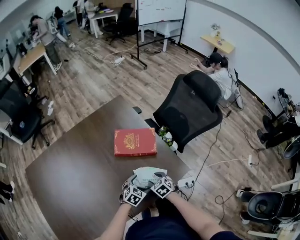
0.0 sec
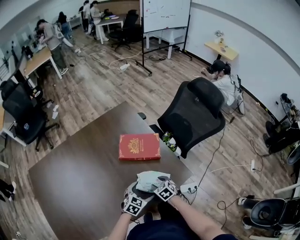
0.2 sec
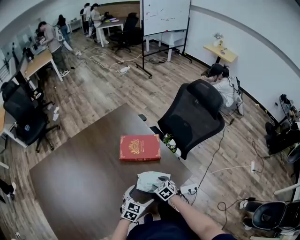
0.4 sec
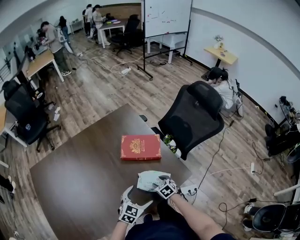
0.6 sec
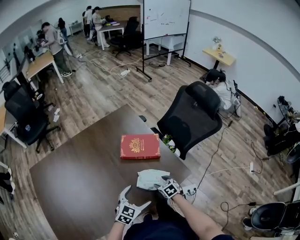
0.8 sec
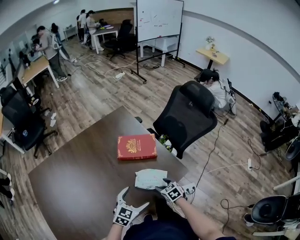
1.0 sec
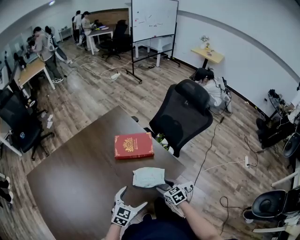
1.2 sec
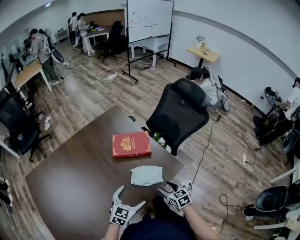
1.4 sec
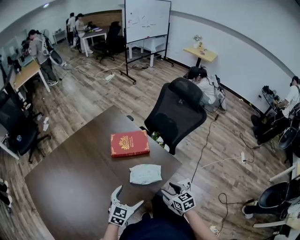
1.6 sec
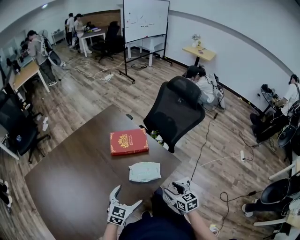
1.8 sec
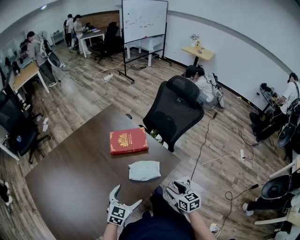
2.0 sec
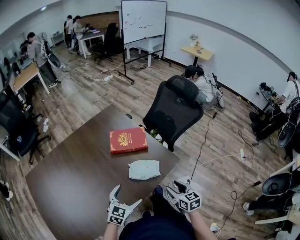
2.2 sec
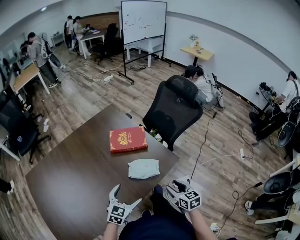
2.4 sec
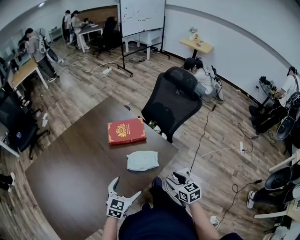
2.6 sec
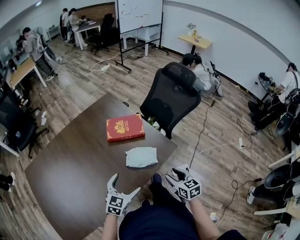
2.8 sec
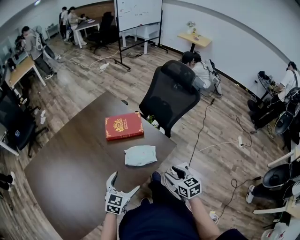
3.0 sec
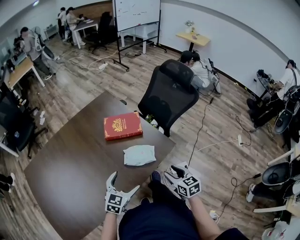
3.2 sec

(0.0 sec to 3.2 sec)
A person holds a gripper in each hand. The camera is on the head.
0.0 sec - 1.6 sec: The left gripper moves upward and backward, approximately 20 cm, and turns by roughly 20 degrees. Meanwhile the right gripper heads backward, upward and to the right, covering roughly 20 cm, and turns by about 30 degrees.
1.6 sec - 3.2 sec: The right gripper shifts by some 5 cm.

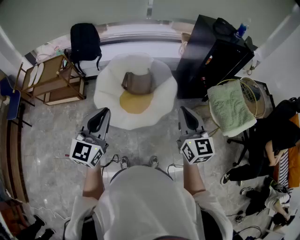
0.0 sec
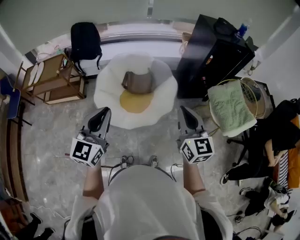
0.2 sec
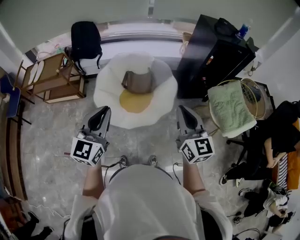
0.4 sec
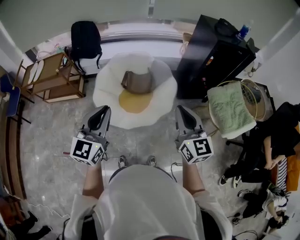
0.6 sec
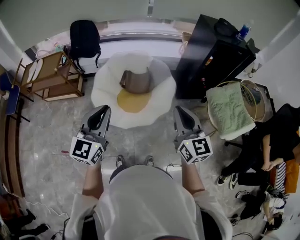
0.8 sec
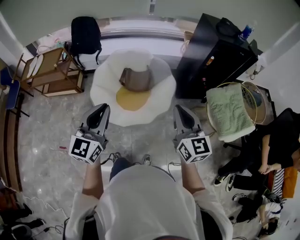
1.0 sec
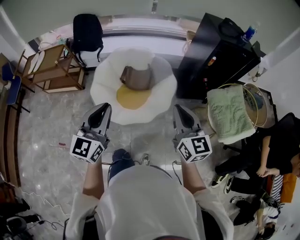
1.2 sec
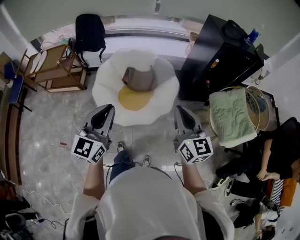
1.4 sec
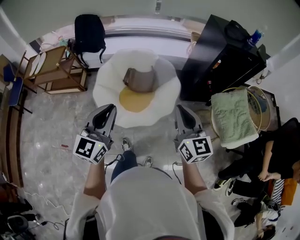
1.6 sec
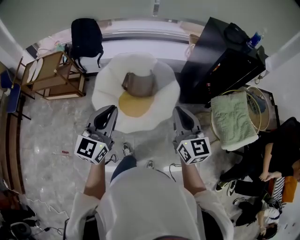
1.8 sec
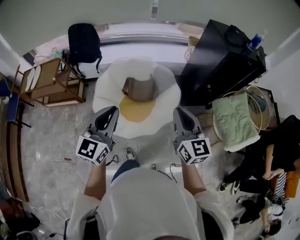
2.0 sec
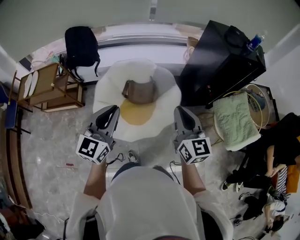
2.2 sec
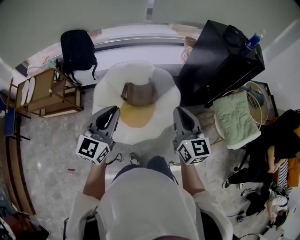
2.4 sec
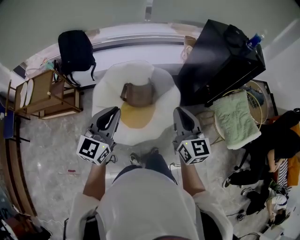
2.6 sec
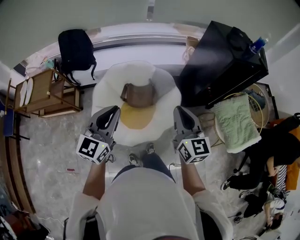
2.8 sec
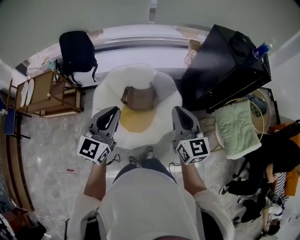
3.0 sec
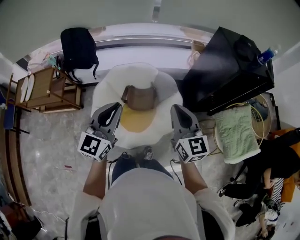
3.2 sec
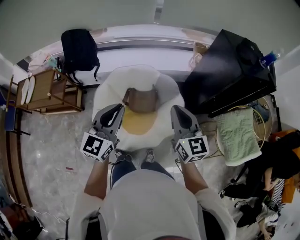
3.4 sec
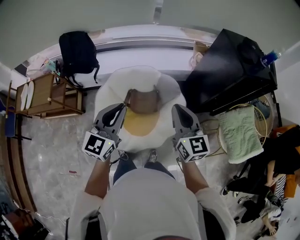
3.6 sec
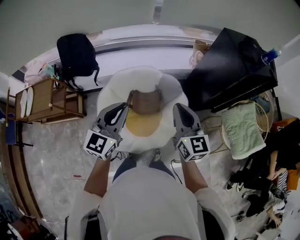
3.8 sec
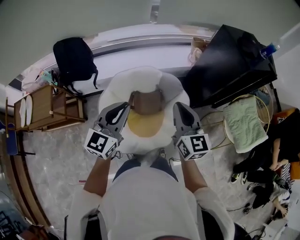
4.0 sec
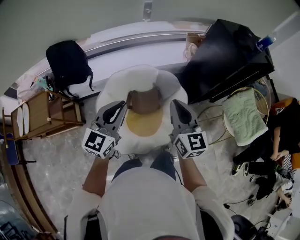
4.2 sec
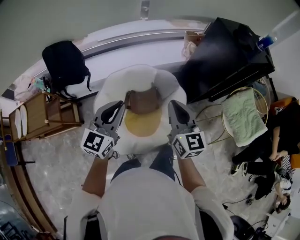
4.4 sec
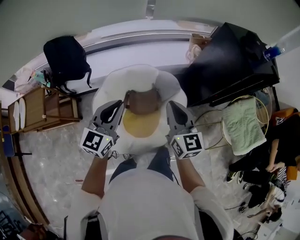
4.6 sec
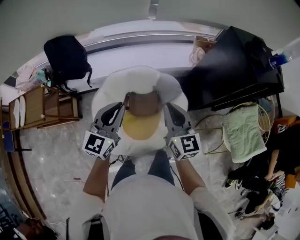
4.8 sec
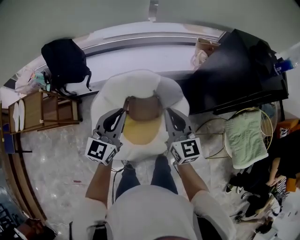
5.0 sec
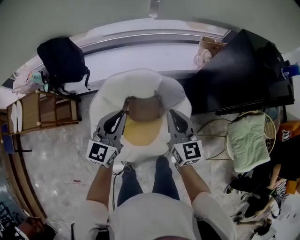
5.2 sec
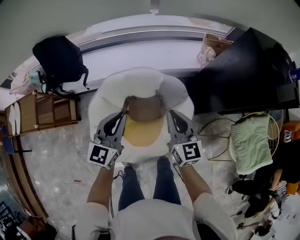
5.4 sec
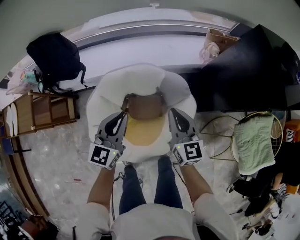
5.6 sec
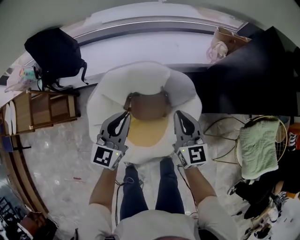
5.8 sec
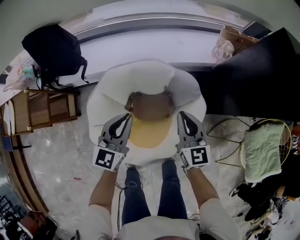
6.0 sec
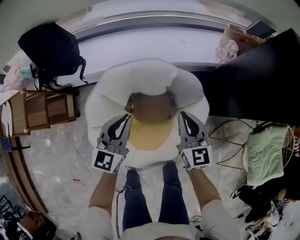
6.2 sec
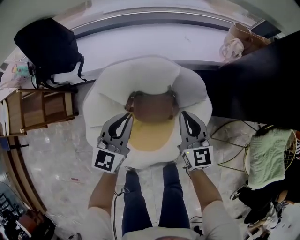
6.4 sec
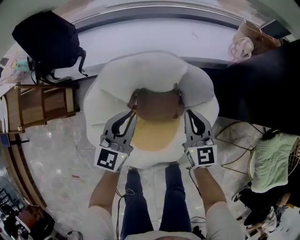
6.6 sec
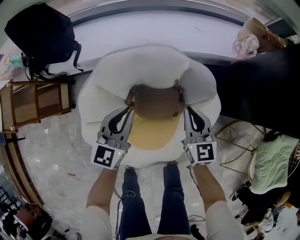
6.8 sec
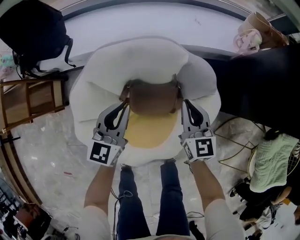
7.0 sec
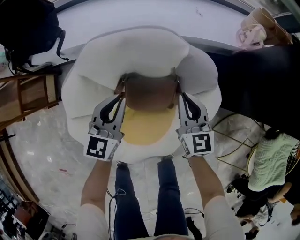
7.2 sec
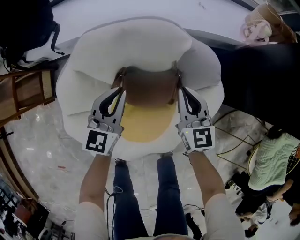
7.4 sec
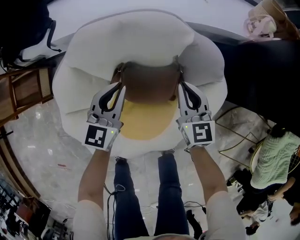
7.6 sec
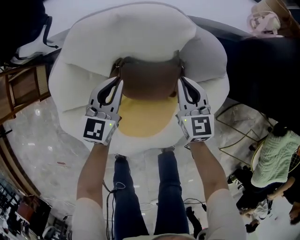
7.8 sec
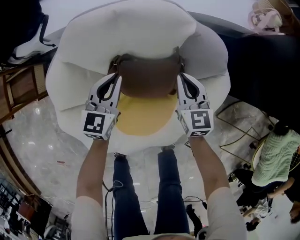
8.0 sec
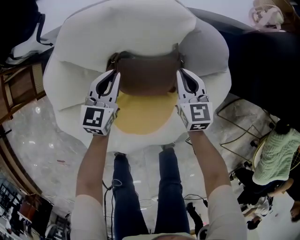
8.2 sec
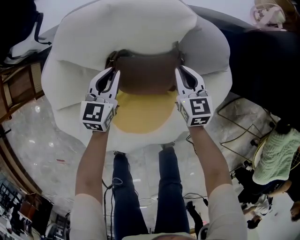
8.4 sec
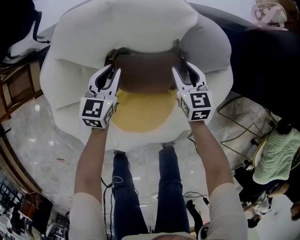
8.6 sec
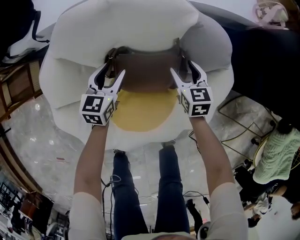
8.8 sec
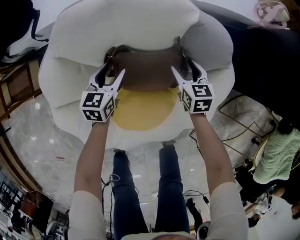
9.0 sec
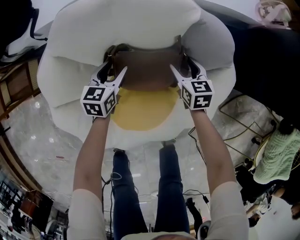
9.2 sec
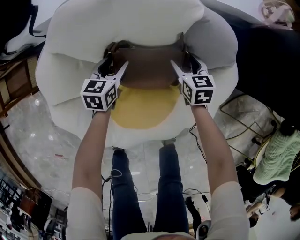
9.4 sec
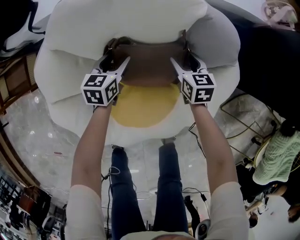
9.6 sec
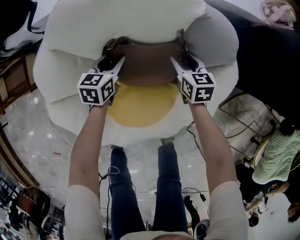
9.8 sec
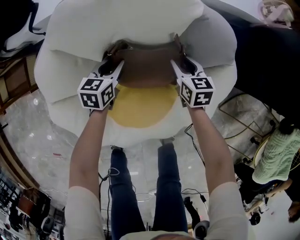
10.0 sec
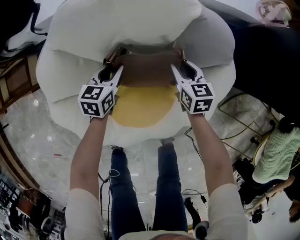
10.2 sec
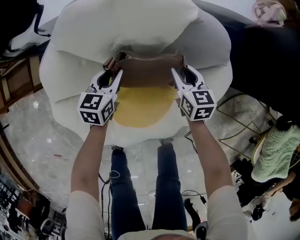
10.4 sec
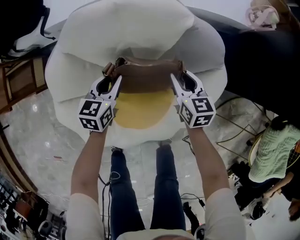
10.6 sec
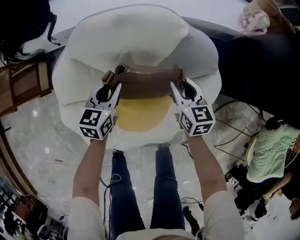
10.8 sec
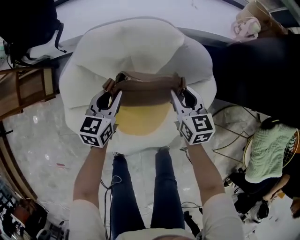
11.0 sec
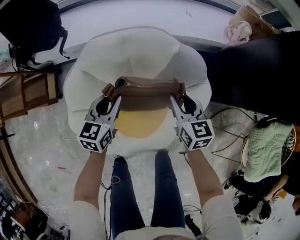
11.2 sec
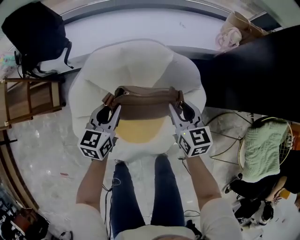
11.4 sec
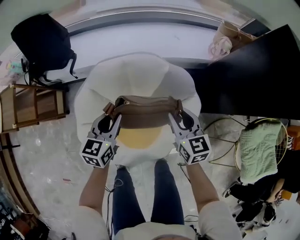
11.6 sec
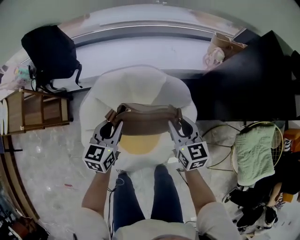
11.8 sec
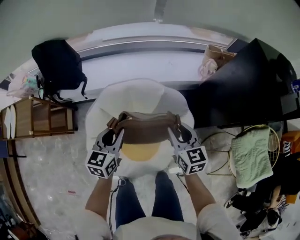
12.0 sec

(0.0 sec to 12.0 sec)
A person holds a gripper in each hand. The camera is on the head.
0.0 sec - 1.6 sec: The left gripper shifts approximately 10 cm to the right and forward, while the right gripper heads forward, covering roughly 5 cm.
1.6 sec - 3.0 sec: The left gripper is displaced forward by some 20 cm, while the right gripper goes roughly 20 cm forward and to the left.
3.0 sec - 4.4 sec: The right gripper heads to the left and forward, covering some 15 cm, while the left gripper shifts some 15 cm forward and to the left.
4.4 sec - 6.0 sec: The two grippers go roughly 30 cm downward and forward.
6.0 sec - 7.6 sec: Both grippers travel together downward, about 25 cm.
7.6 sec - 9.0 sec: Both grippers travel together downward, roughly 15 cm. The left gripper changes its angle by approximately 20 degrees, and opens. The right gripper rotates approximately 20 degrees, and opens its fingers.
9.0 sec - 10.4 sec: The right gripper shifts by roughly 5 cm, and closes its fingers. Meanwhile the left gripper closes.
10.4 sec - 12.0 sec: The two grippers go approximately 40 cm upward.

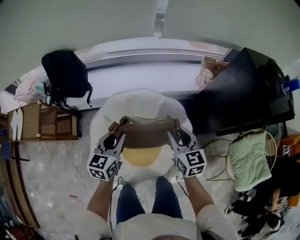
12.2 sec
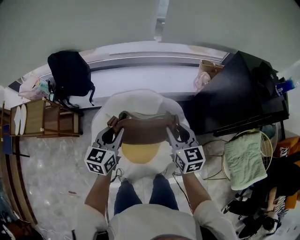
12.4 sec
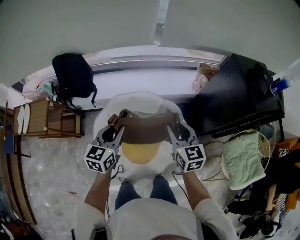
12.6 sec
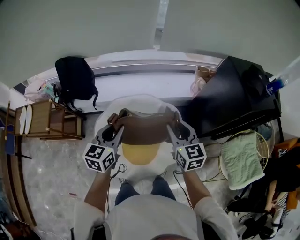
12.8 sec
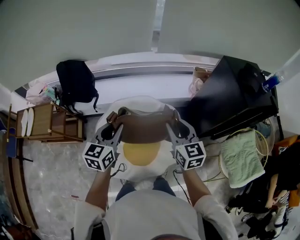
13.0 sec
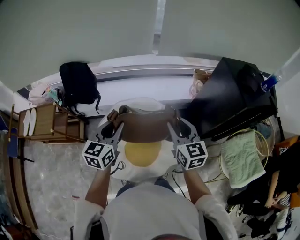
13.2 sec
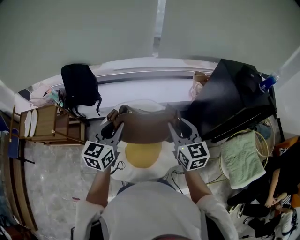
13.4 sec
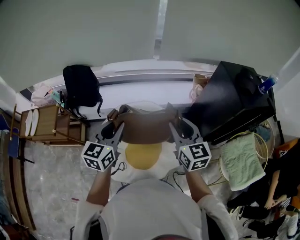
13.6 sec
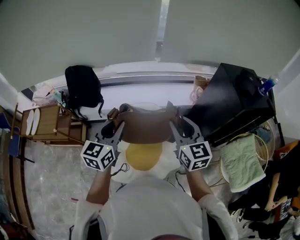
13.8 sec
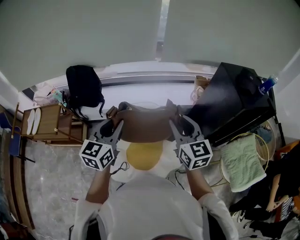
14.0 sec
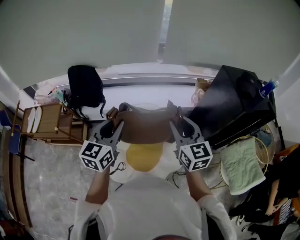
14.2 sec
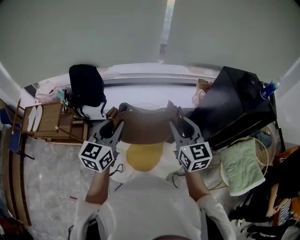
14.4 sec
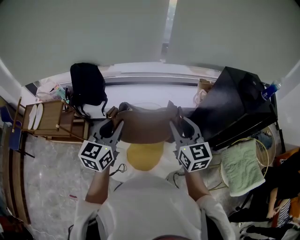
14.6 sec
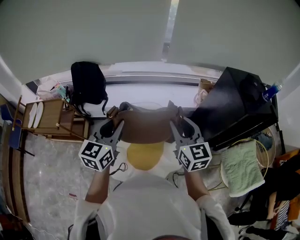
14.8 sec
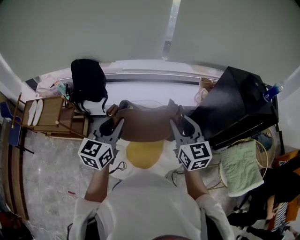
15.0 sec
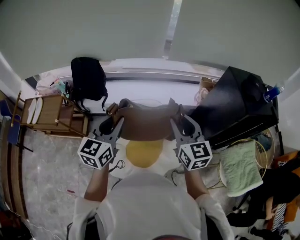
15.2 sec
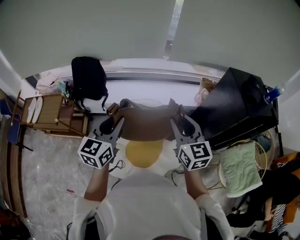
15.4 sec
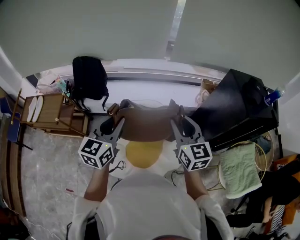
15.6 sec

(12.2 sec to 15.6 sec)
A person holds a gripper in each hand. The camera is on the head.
12.2 sec - 13.8 sec: Both grippers travel together upward, approximately 20 cm.
13.8 sec - 15.6 sec: There are only small adjustments of the grippers.

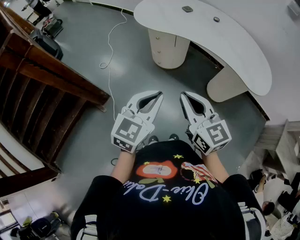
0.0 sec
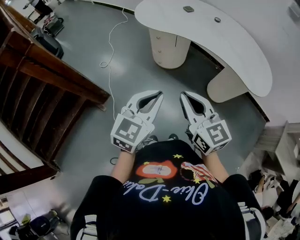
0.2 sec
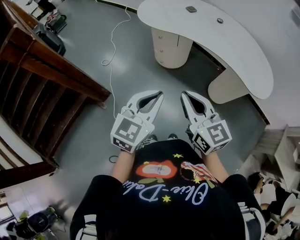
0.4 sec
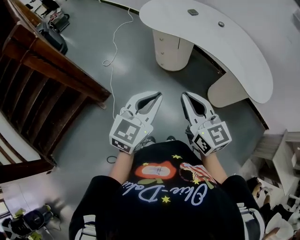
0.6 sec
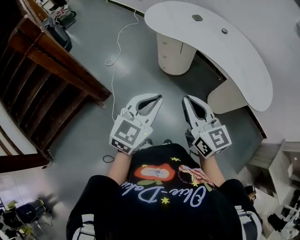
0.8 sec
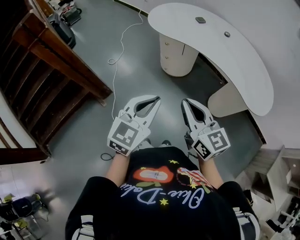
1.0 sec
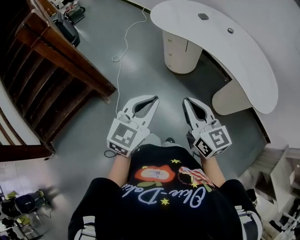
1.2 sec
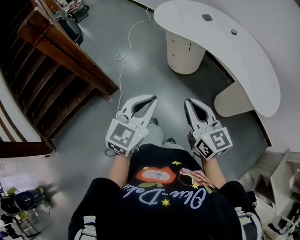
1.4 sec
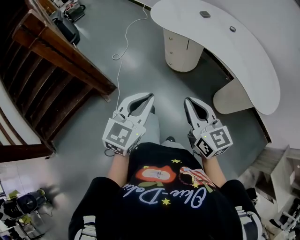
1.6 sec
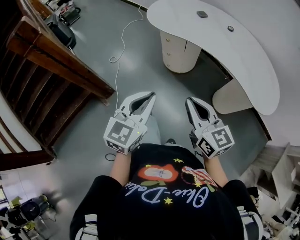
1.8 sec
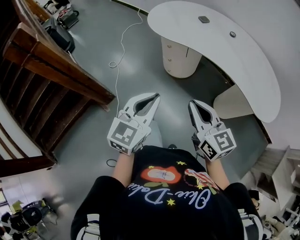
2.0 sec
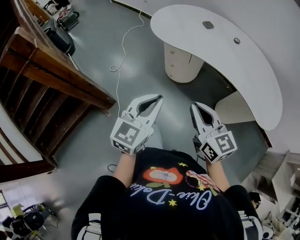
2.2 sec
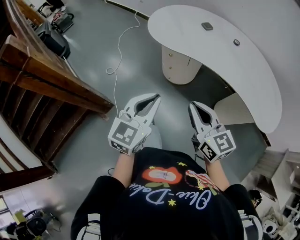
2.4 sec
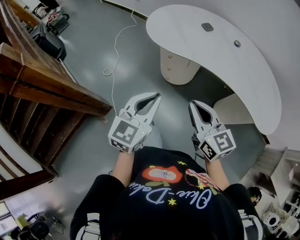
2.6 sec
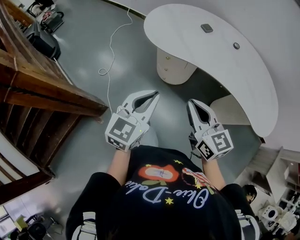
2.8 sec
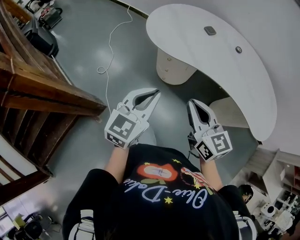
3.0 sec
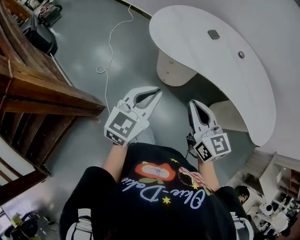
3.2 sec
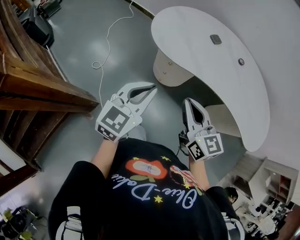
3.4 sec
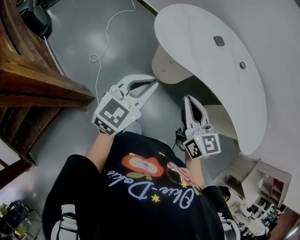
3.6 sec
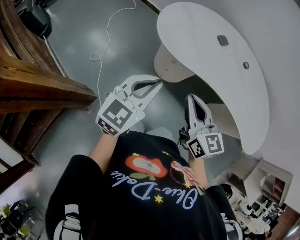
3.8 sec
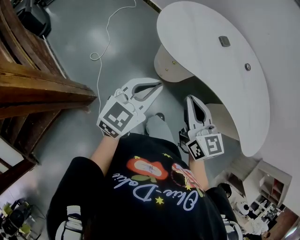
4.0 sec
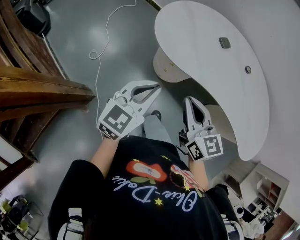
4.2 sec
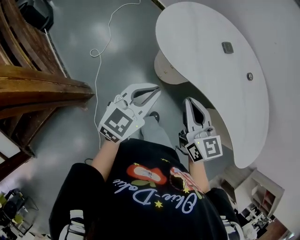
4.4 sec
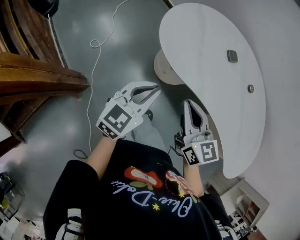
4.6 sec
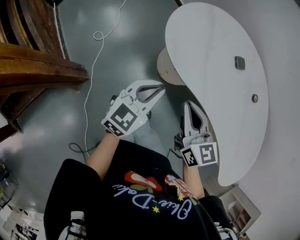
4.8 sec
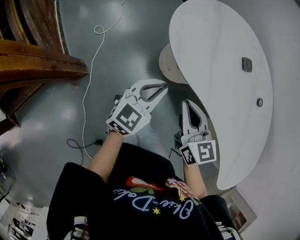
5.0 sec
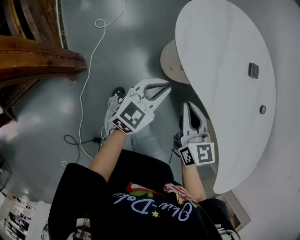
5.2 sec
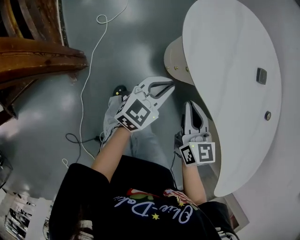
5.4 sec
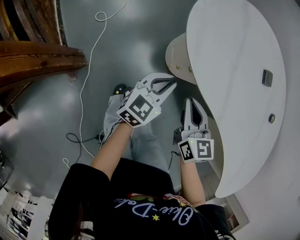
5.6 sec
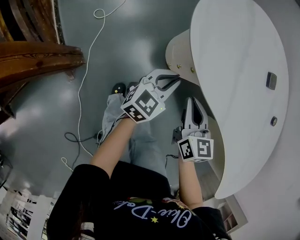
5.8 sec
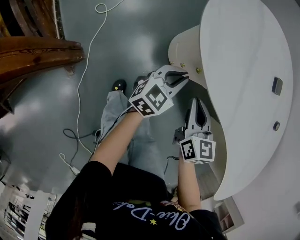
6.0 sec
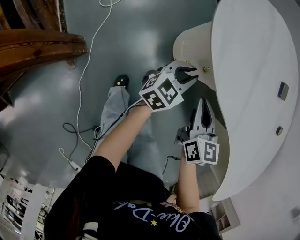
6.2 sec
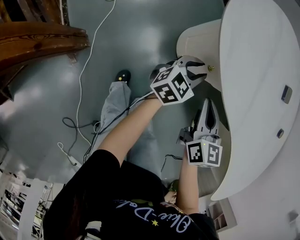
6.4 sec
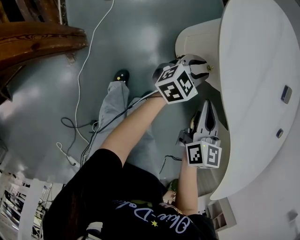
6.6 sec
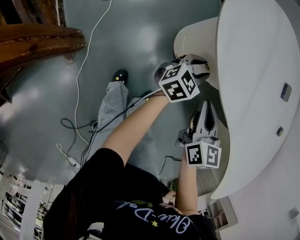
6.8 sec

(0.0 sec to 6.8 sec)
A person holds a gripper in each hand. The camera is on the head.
0.0 sec - 1.4 sec: There are only small adjustments of the grippers.
1.4 sec - 2.8 sec: The two grippers go roughly 25 cm forward.
2.8 sec - 4.0 sec: Both grippers move forward and to the left, some 15 cm.
4.0 sec - 5.4 sec: Both grippers travel together downward and forward, roughly 25 cm.
5.4 sec - 6.8 sec: The left gripper moves downward and forward, about 20 cm, and opens up. Meanwhile the right gripper heads downward, covering some 10 cm.
